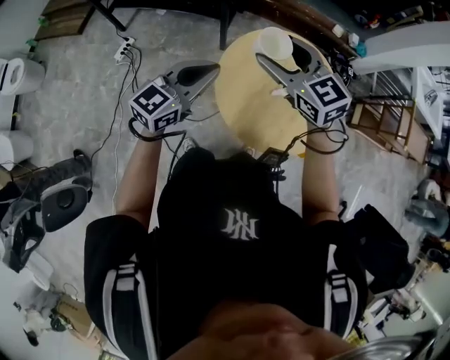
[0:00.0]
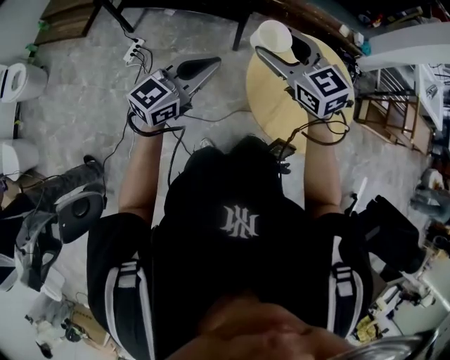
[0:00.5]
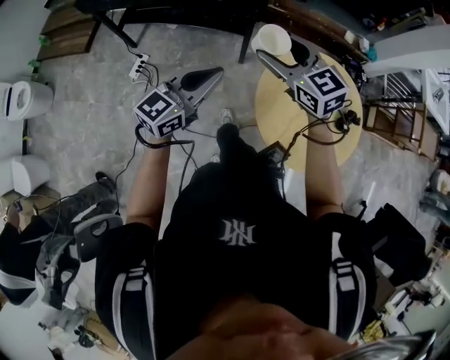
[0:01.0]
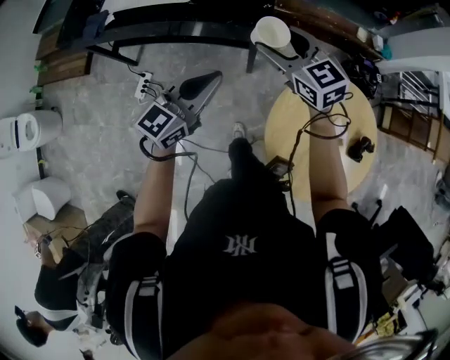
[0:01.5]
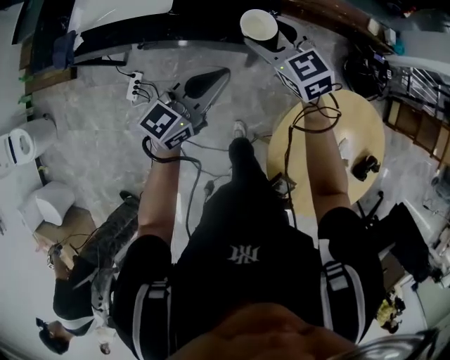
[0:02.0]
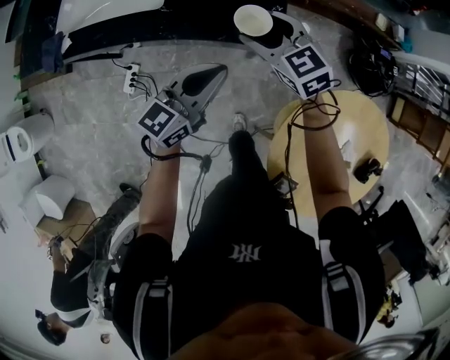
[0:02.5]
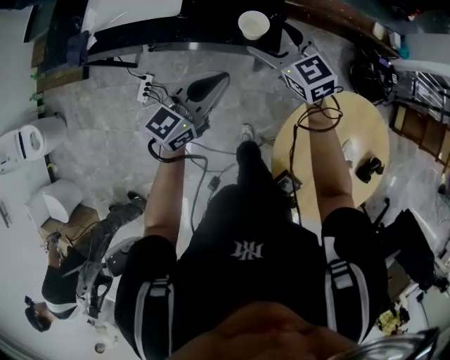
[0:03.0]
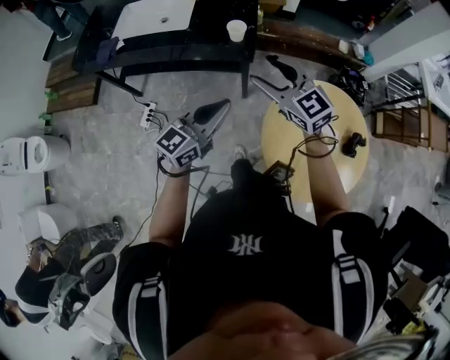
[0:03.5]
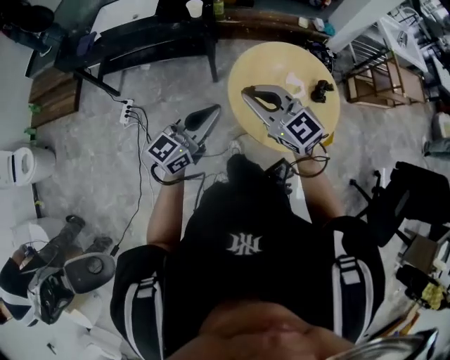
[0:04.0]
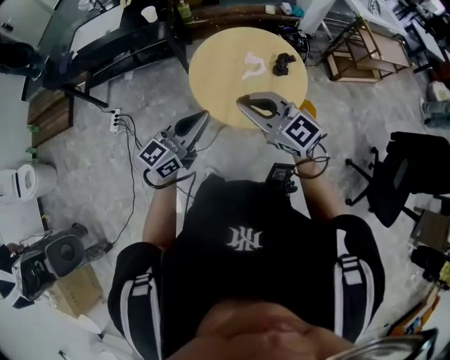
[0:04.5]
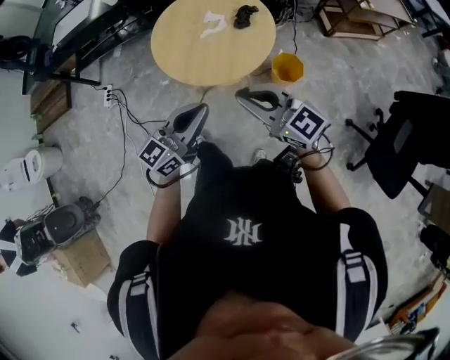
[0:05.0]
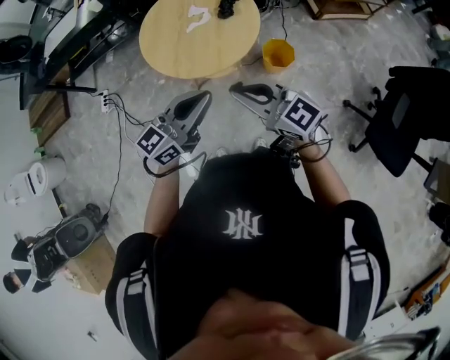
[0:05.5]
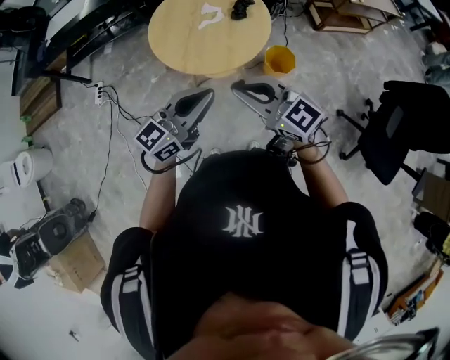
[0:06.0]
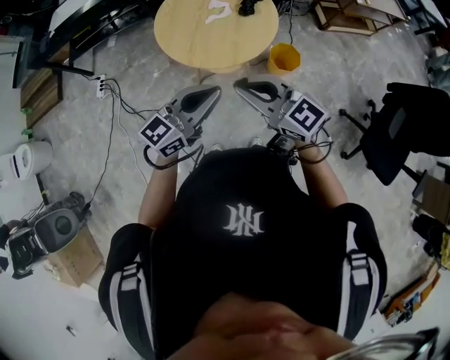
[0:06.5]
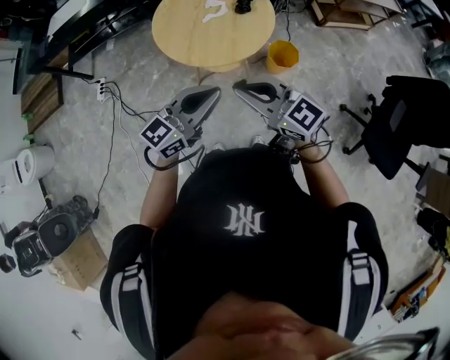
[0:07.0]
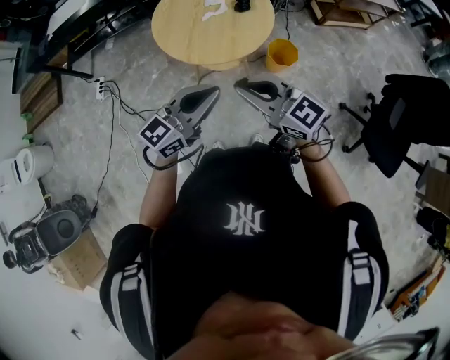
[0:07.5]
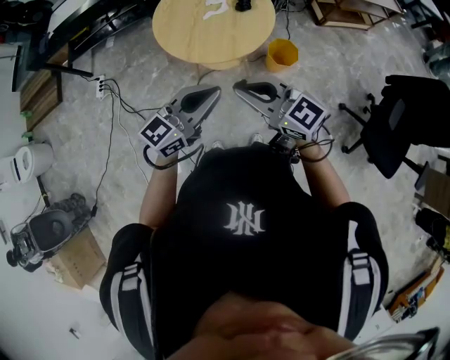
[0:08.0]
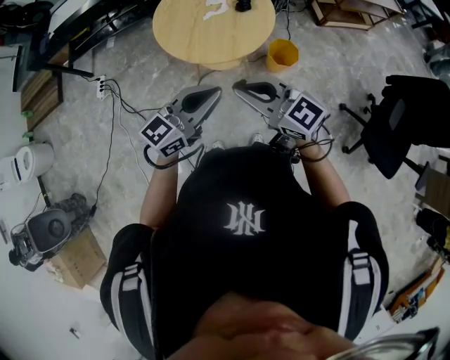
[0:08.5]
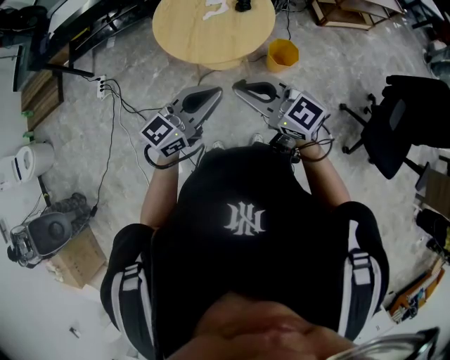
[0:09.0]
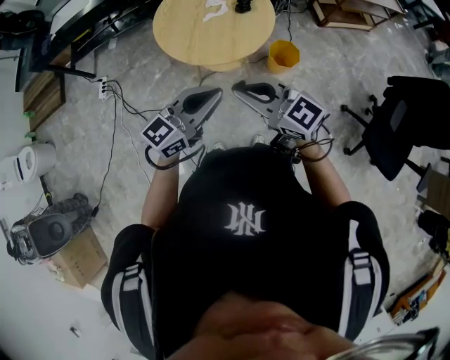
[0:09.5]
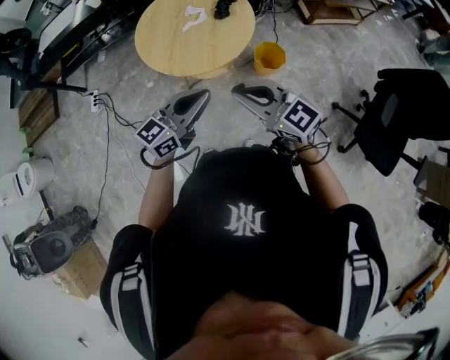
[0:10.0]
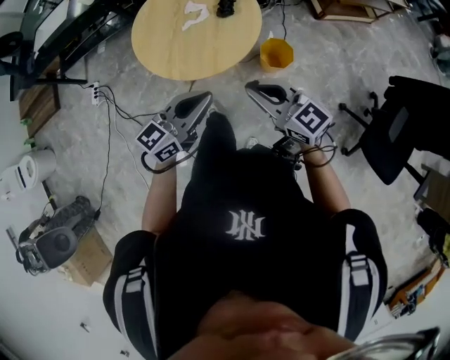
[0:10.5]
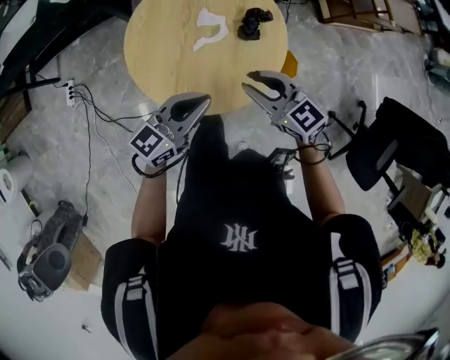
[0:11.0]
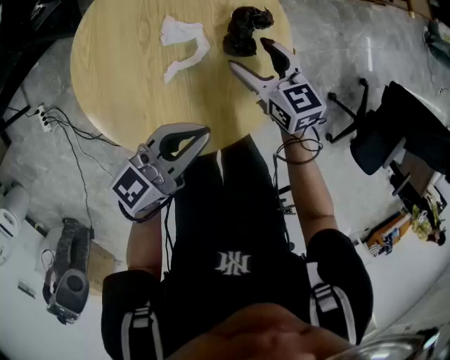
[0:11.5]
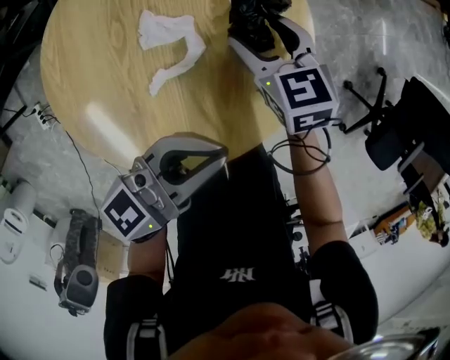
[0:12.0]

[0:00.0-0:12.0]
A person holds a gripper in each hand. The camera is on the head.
0:00.0 to 0:02.0: The right gripper heads forward, to the left and downward, covering roughly 50 cm; the left gripper is displaced forward and to the left by about 40 cm.
0:02.0 to 0:04.0: The two grippers travel together, backward, some 50 cm. The right gripper closes.
0:04.0 to 0:06.0: The pair of grippers is taken to the right and backward, approximately 40 cm.
0:06.0 to 0:08.0: The grippers move only a little.
0:08.0 to 0:10.0: The left gripper ends up approximately 5 cm from where it was, while the right gripper is displaced to the right by about 5 cm.
0:10.0 to 0:12.0: The right gripper moves forward and downward, approximately 60 cm, angles its fingers downward, by some 30 degrees, and opens up. Meanwhile the left gripper moves forward and downward, approximately 40 cm, and swivels approximately 20 degrees.

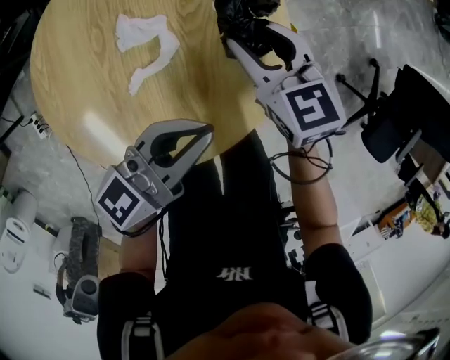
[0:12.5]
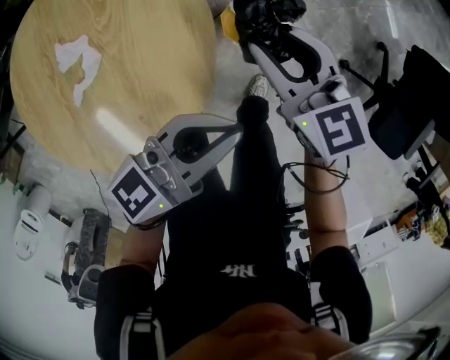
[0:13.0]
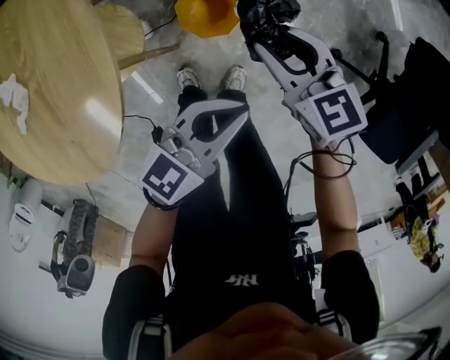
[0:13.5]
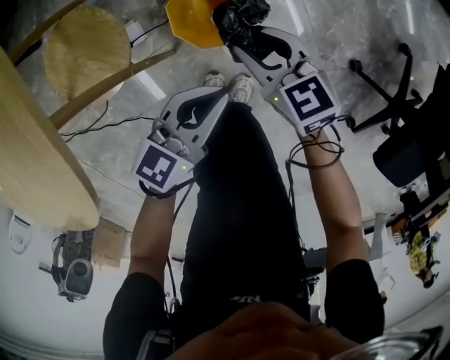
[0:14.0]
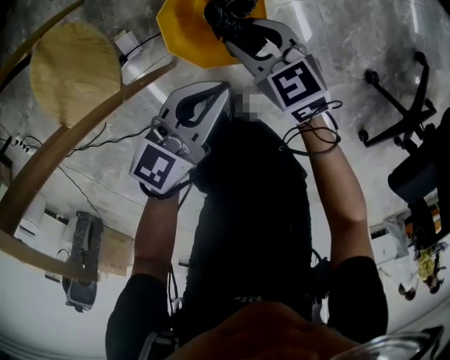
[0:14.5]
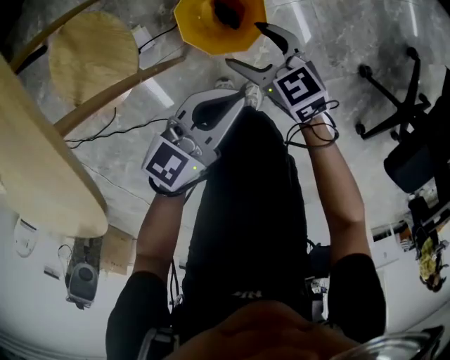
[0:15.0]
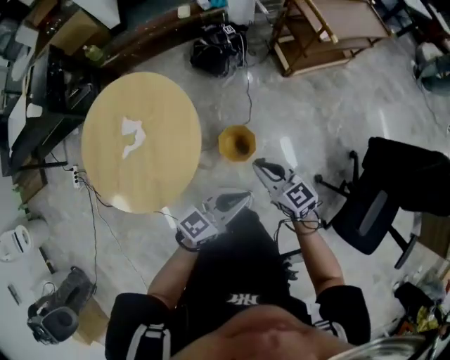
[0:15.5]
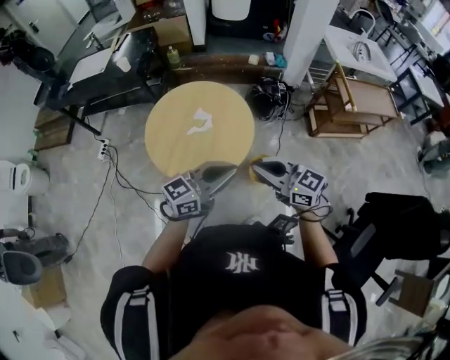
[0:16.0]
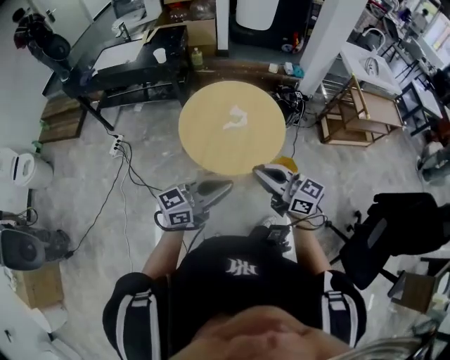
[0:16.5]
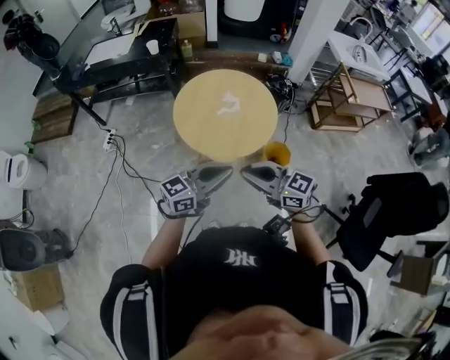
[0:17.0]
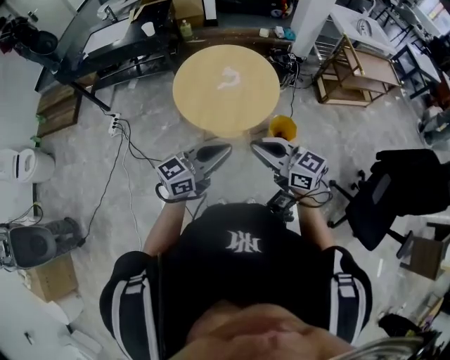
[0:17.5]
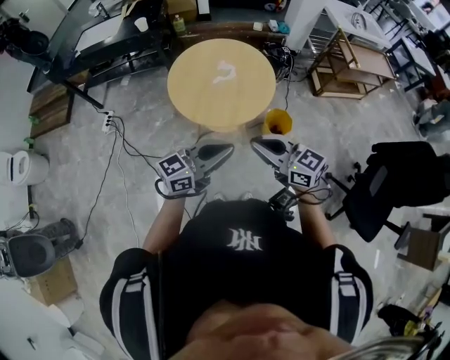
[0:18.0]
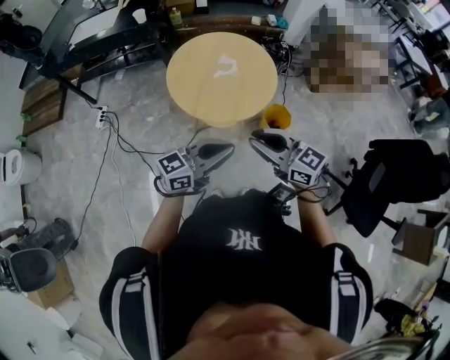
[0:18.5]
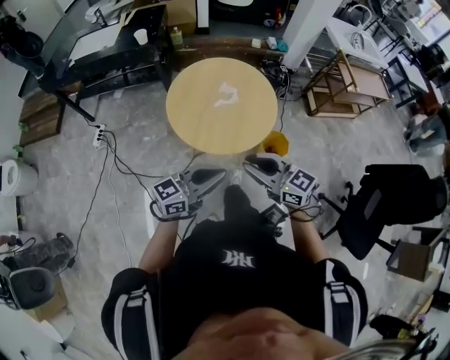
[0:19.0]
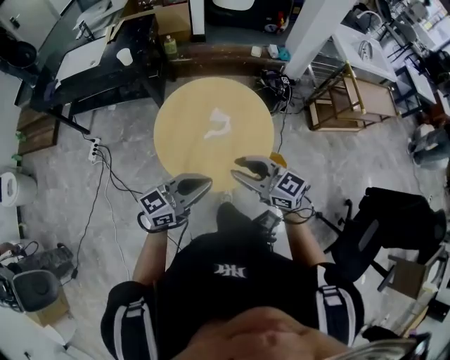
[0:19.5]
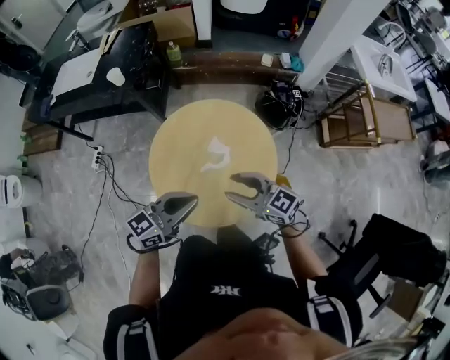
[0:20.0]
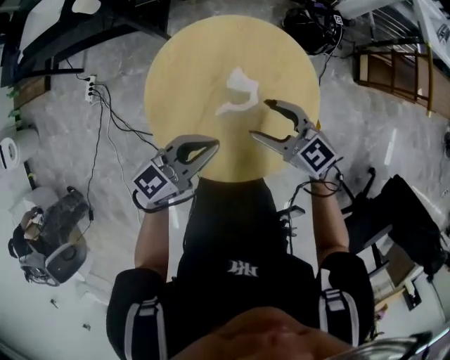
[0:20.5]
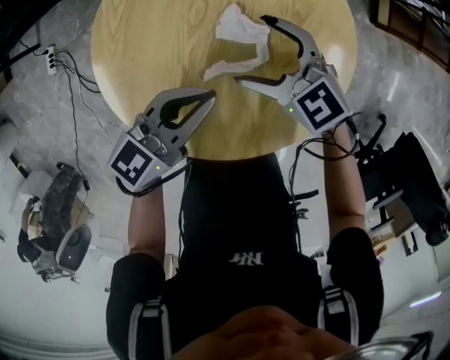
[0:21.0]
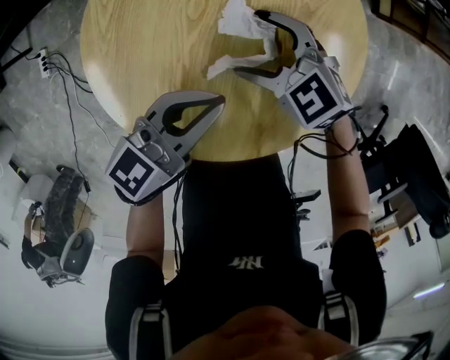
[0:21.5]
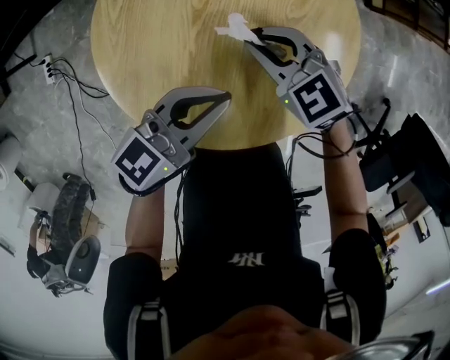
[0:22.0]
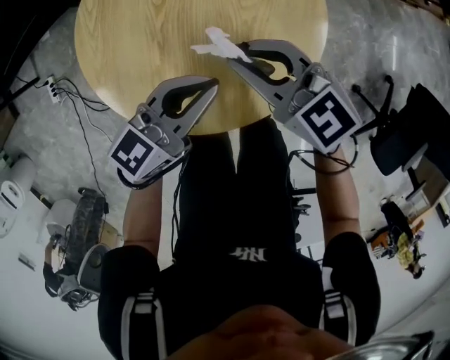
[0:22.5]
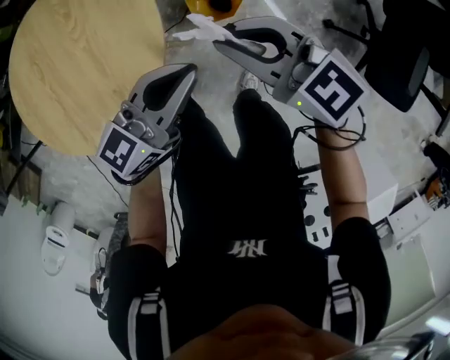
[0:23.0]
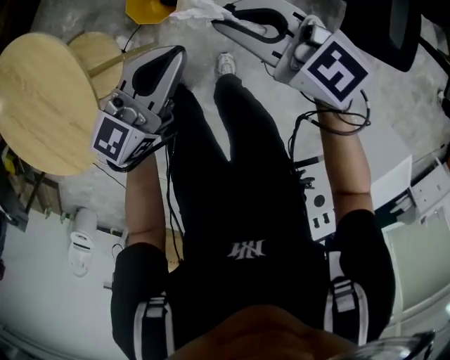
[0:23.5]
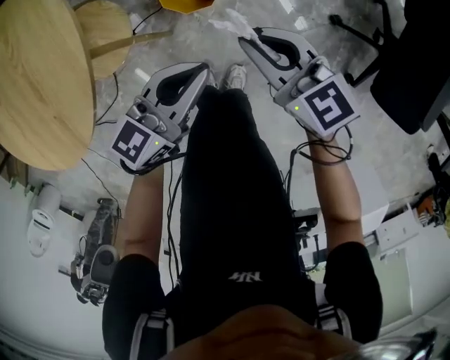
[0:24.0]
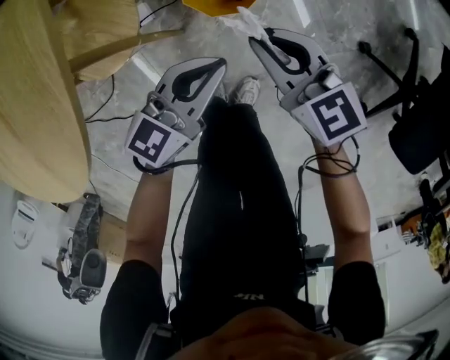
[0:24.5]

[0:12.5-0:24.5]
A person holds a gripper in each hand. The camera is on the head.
0:12.5 to 0:14.5: The two grippers go approximately 50 cm downward and to the right.
0:14.5 to 0:16.5: Both grippers are carried to the left and backward, about 40 cm. The two grippers go about 70 cm upward. The right gripper points its fingers some 40 degrees further upward, and opens, then closes again, while the left gripper turns by roughly 20 degrees.
0:16.5 to 0:18.5: The right gripper changes place by roughly 10 cm, while the left gripper changes place by roughly 5 cm.
0:18.5 to 0:20.5: The right gripper goes some 50 cm forward and downward, and opens. Meanwhile the left gripper travels forward by roughly 40 cm, and rotates some 20 degrees.
0:20.5 to 0:22.5: The left gripper travels downward by about 10 cm. The right gripper reaches about 15 cm downward, then returns, and closes.
0:22.5 to 0:24.5: The two grippers go some 50 cm to the right and downward. The right gripper rotates about 30 degrees.

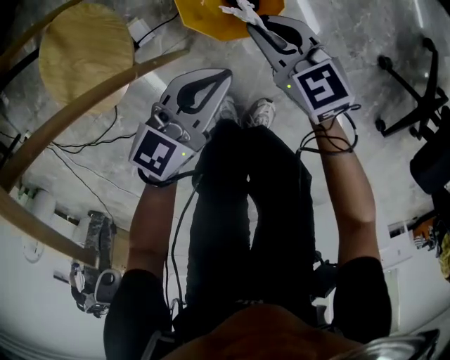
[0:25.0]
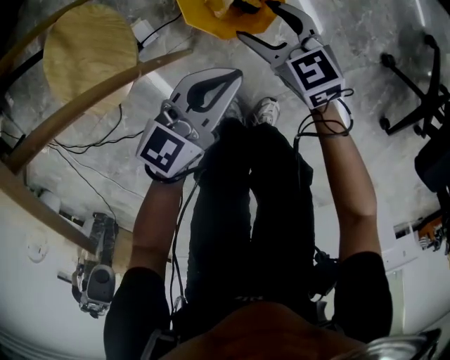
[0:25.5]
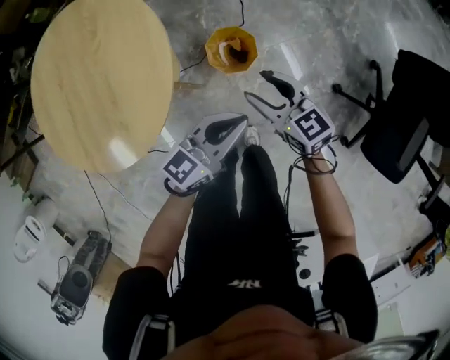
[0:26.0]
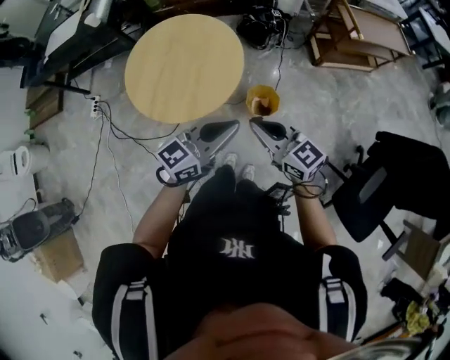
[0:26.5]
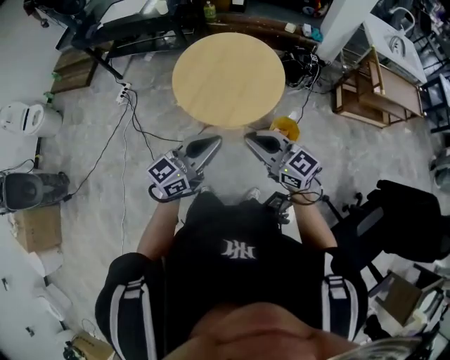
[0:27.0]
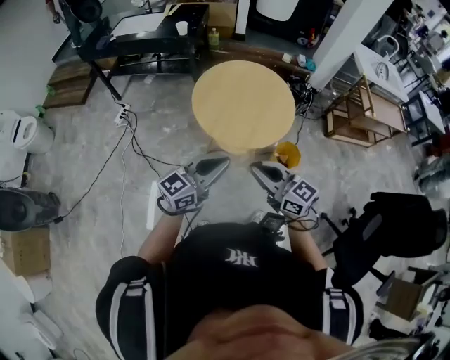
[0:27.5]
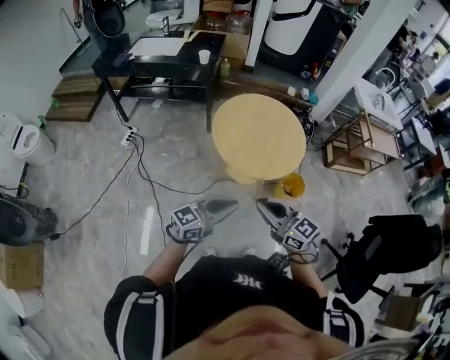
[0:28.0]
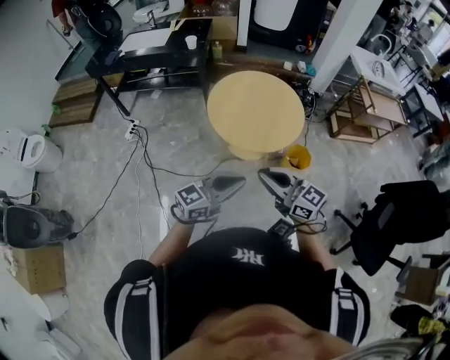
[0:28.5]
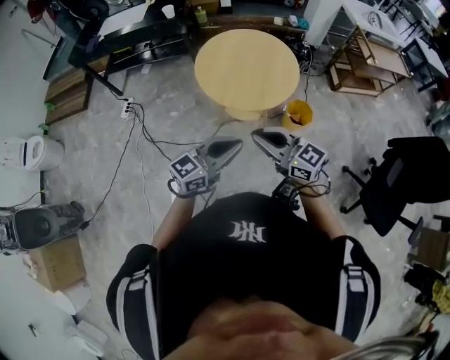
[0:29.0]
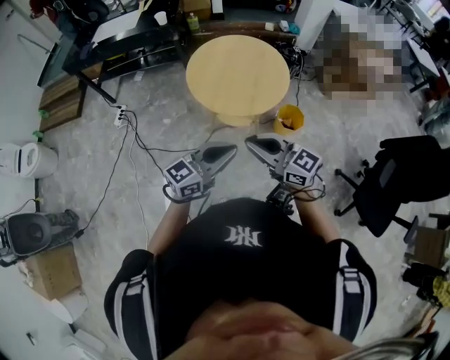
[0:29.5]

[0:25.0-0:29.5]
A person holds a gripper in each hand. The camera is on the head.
0:25.0 to 0:27.0: Both grippers move upward, approximately 70 cm. The left gripper turns by approximately 40 degrees. Meanwhile the right gripper turns by some 50 degrees, and opens and closes again.
0:27.0 to 0:29.5: The grippers both shift to the left and backward by roughly 20 cm.
